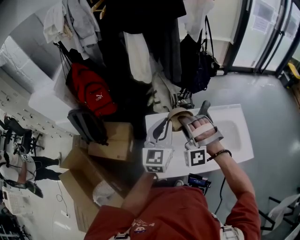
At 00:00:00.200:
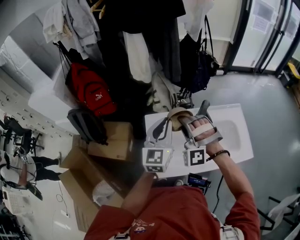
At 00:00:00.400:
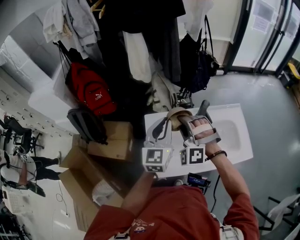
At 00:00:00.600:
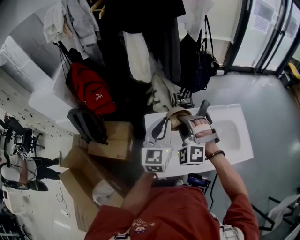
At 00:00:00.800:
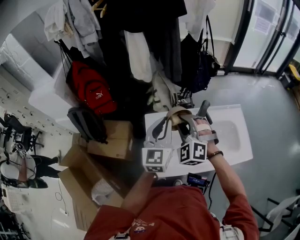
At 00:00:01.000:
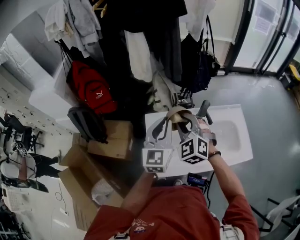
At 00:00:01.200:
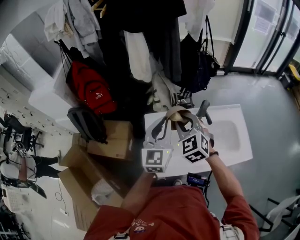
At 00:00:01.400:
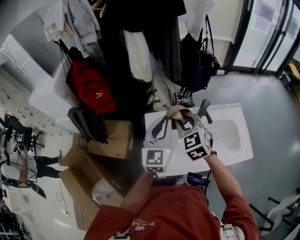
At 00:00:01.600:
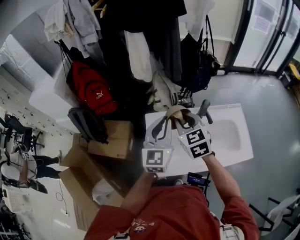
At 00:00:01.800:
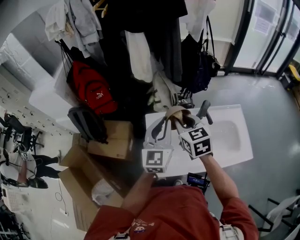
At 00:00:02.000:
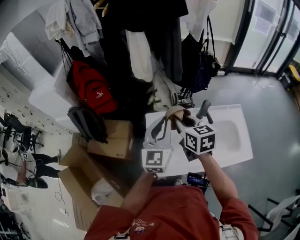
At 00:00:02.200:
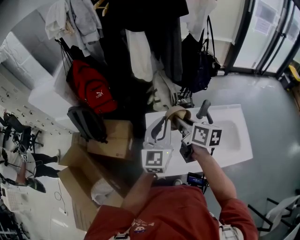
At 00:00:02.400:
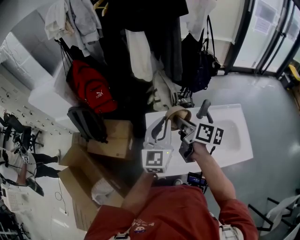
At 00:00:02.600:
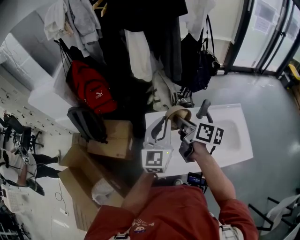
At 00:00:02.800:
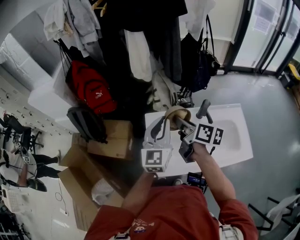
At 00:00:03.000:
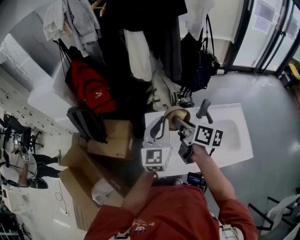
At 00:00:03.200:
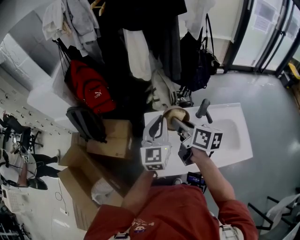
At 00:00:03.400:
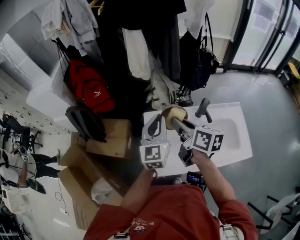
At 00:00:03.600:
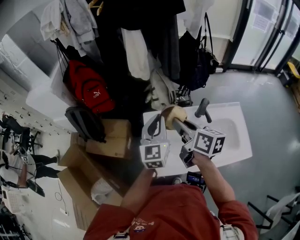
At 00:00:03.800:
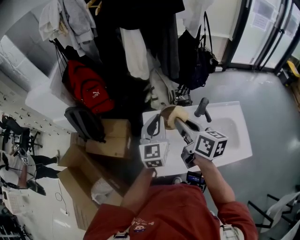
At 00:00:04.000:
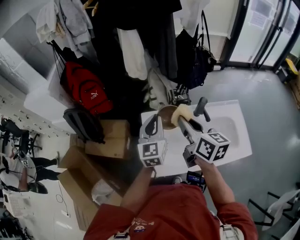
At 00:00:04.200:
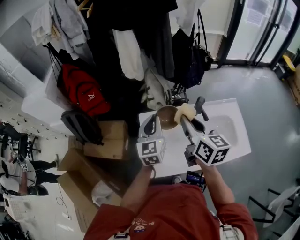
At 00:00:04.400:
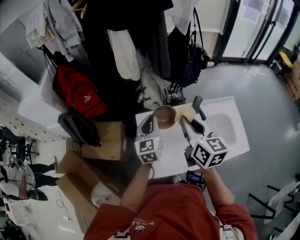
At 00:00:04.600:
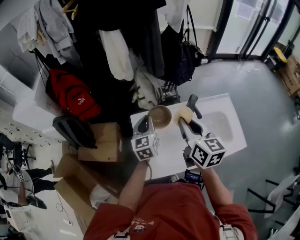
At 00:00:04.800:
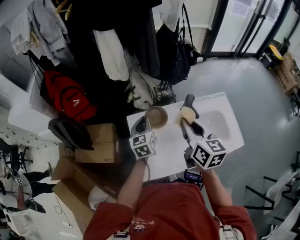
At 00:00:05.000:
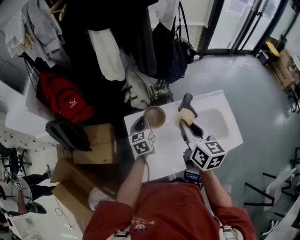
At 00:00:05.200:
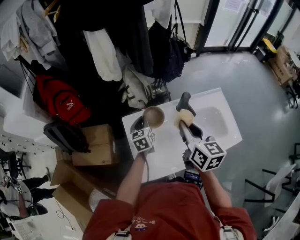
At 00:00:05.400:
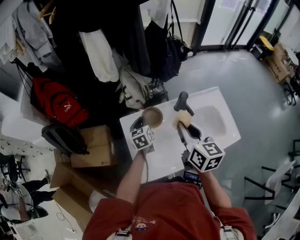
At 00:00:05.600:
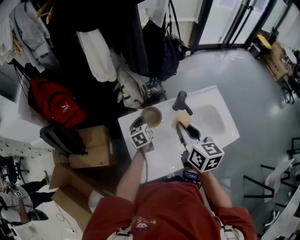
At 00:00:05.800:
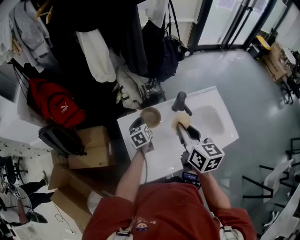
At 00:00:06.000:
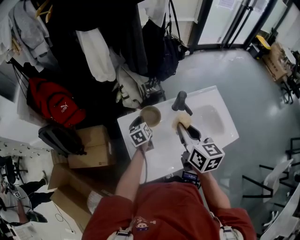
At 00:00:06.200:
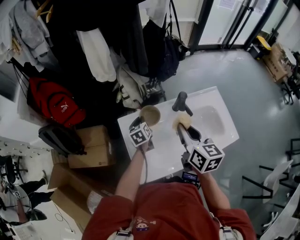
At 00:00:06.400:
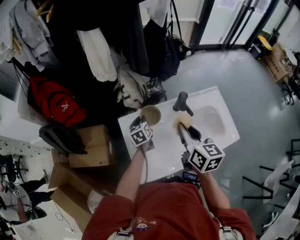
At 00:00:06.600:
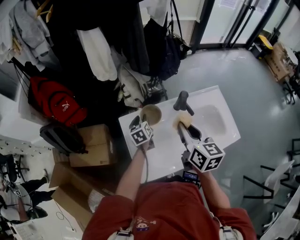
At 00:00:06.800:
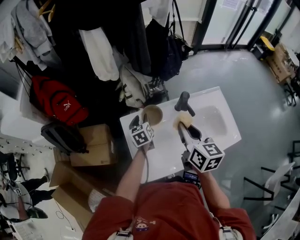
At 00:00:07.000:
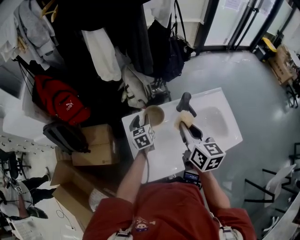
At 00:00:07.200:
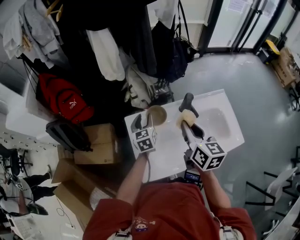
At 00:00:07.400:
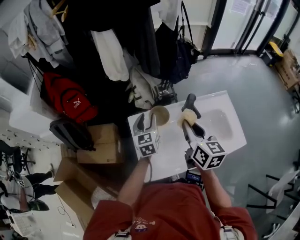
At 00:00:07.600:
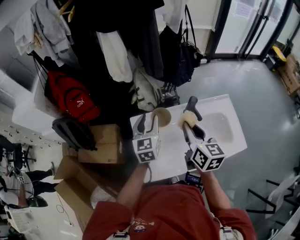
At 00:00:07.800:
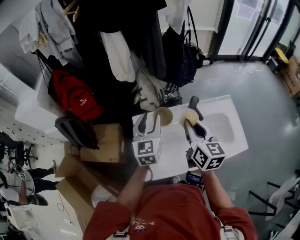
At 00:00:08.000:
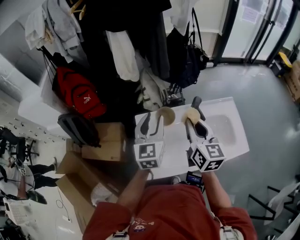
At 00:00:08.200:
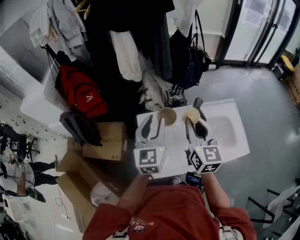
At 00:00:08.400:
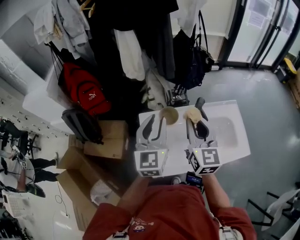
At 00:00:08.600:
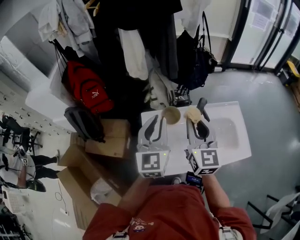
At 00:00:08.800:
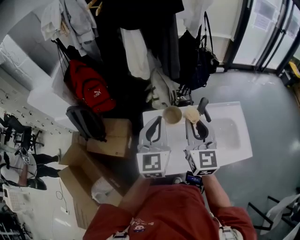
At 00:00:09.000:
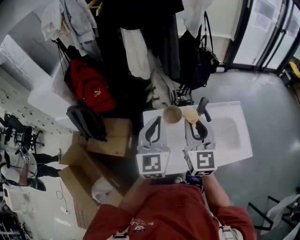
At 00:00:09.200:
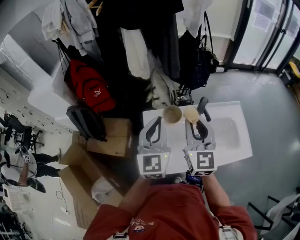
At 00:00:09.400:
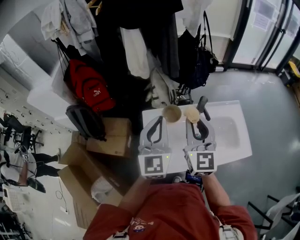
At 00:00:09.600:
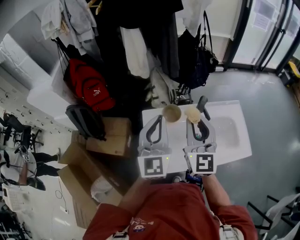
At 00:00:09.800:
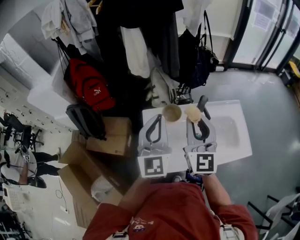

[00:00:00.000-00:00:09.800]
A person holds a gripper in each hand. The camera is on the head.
00:00:00.000 to 00:00:01.400: The right gripper rolls clockwise, seen from behind, by some 70 degrees.
00:00:01.400 to 00:00:02.800: The right gripper rolls clockwise, seen from behind, by some 70 degrees.
00:00:02.800 to 00:00:04.200: The left gripper is displaced downward by approximately 5 cm, while the right gripper shifts by about 5 cm, and changes its angle by some 30 degrees.
00:00:04.200 to 00:00:05.600: The right gripper travels downward by roughly 5 cm. Meanwhile the left gripper shifts approximately 20 cm downward and forward, and swivels roughly 30 degrees.
00:00:05.600 to 00:00:07.000: The left gripper opens.
00:00:07.000 to 00:00:08.400: The left gripper travels upward and backward by approximately 30 cm, and swivels some 30 degrees, while the right gripper shifts about 5 cm upward, and swivels approximately 20 degrees.
00:00:08.400 to 00:00:09.800: The left gripper shifts by some 5 cm, and closes.

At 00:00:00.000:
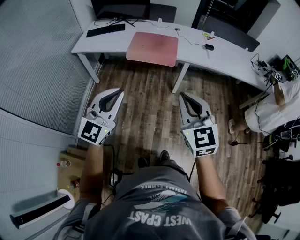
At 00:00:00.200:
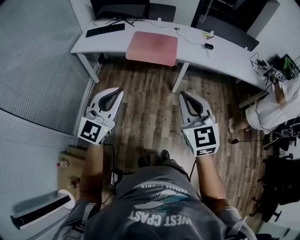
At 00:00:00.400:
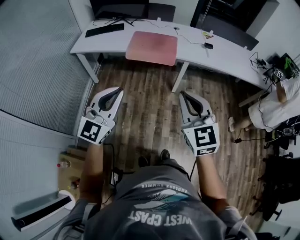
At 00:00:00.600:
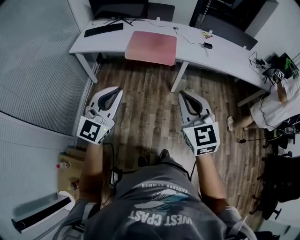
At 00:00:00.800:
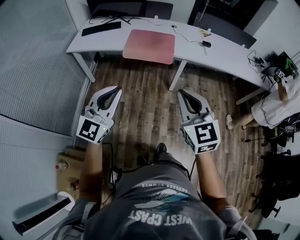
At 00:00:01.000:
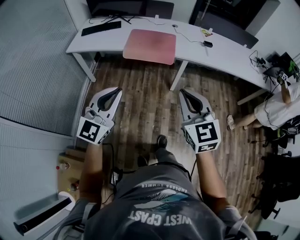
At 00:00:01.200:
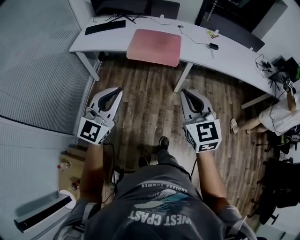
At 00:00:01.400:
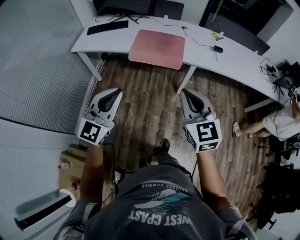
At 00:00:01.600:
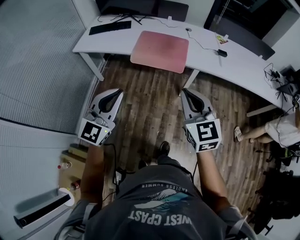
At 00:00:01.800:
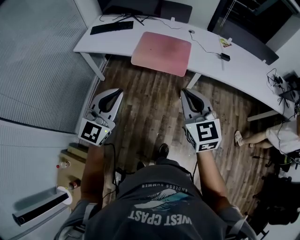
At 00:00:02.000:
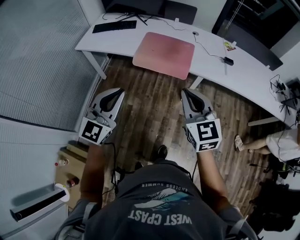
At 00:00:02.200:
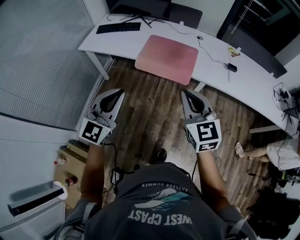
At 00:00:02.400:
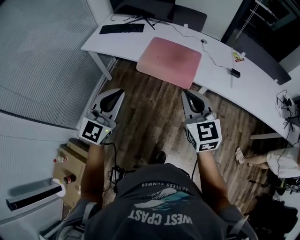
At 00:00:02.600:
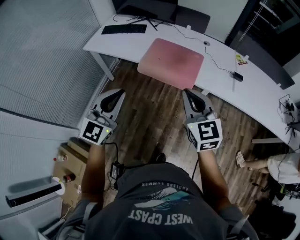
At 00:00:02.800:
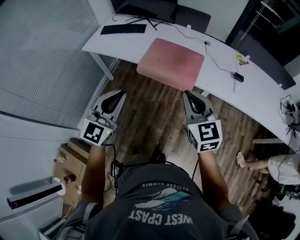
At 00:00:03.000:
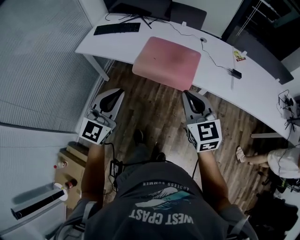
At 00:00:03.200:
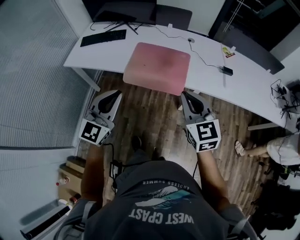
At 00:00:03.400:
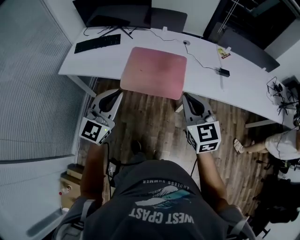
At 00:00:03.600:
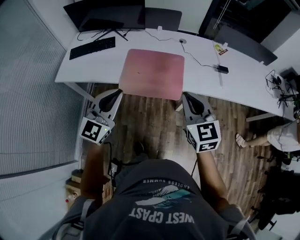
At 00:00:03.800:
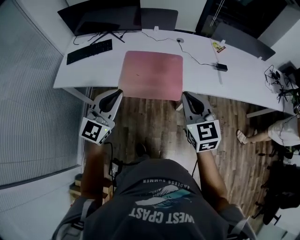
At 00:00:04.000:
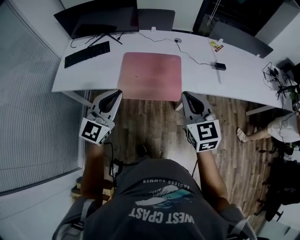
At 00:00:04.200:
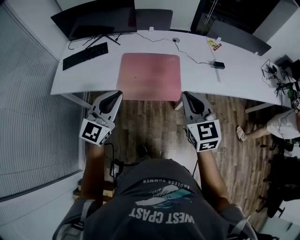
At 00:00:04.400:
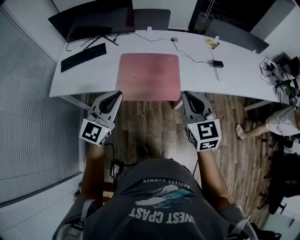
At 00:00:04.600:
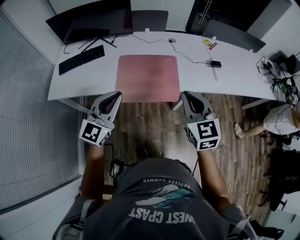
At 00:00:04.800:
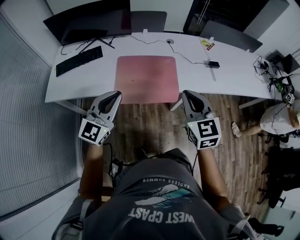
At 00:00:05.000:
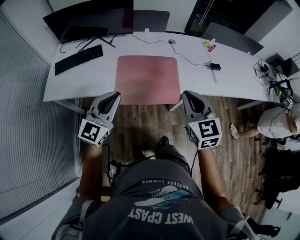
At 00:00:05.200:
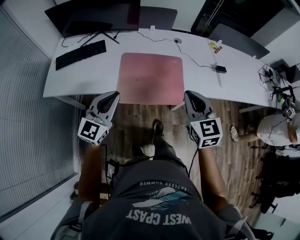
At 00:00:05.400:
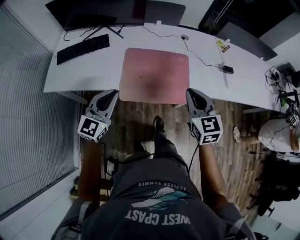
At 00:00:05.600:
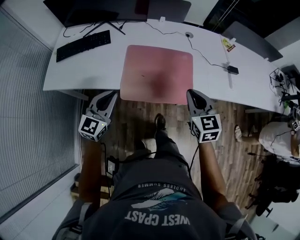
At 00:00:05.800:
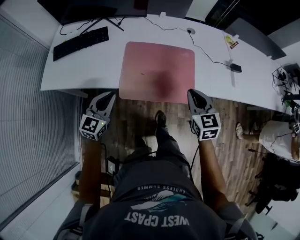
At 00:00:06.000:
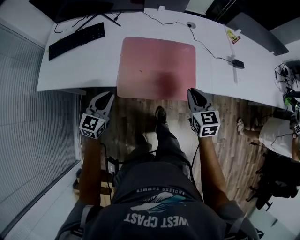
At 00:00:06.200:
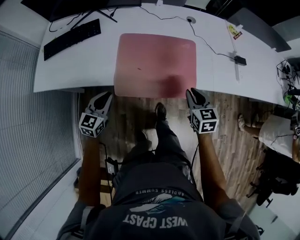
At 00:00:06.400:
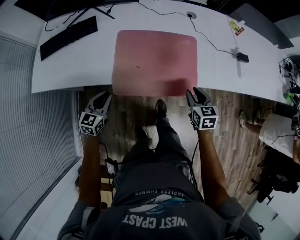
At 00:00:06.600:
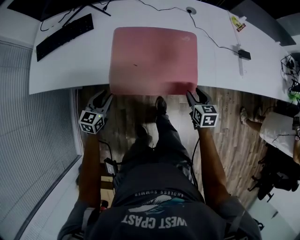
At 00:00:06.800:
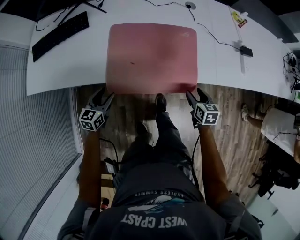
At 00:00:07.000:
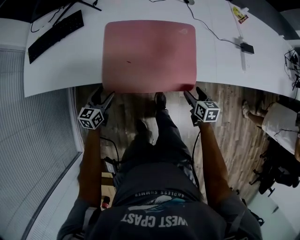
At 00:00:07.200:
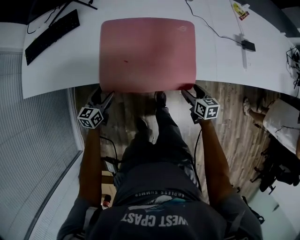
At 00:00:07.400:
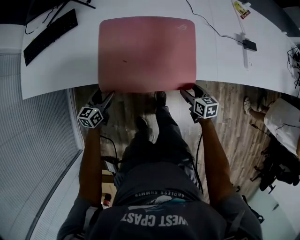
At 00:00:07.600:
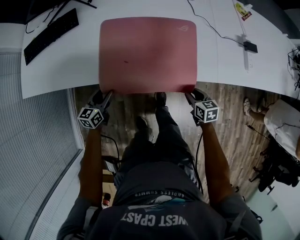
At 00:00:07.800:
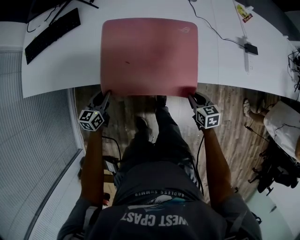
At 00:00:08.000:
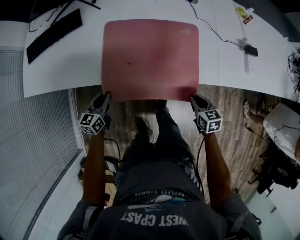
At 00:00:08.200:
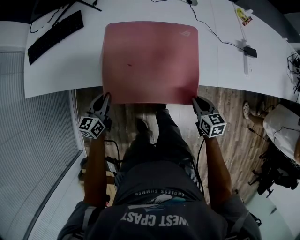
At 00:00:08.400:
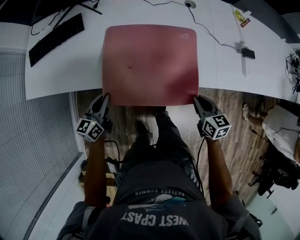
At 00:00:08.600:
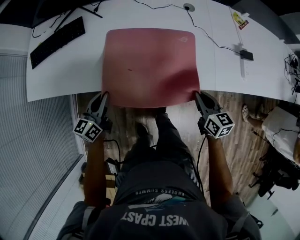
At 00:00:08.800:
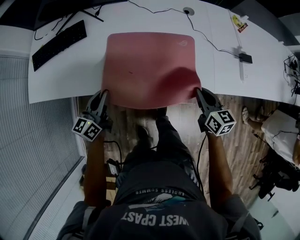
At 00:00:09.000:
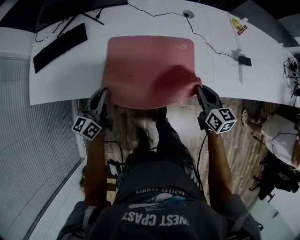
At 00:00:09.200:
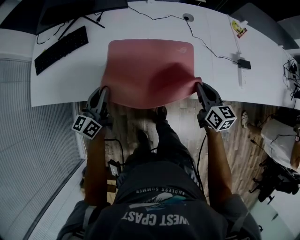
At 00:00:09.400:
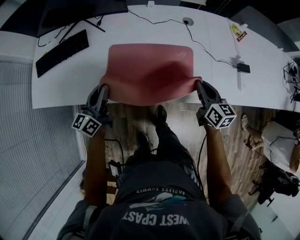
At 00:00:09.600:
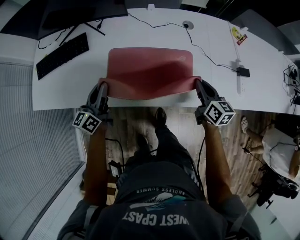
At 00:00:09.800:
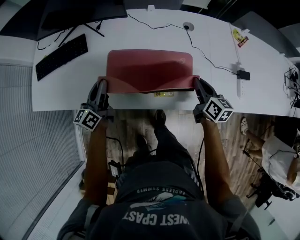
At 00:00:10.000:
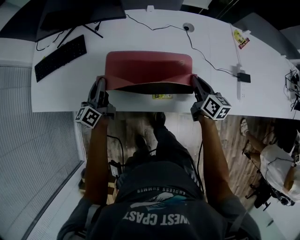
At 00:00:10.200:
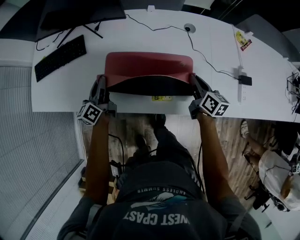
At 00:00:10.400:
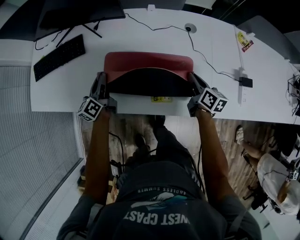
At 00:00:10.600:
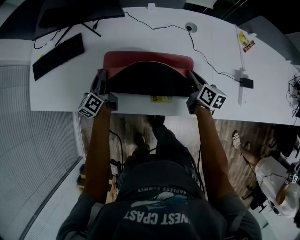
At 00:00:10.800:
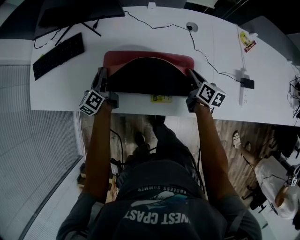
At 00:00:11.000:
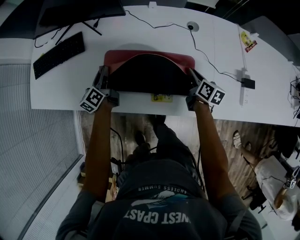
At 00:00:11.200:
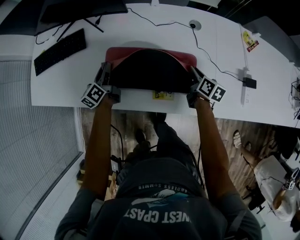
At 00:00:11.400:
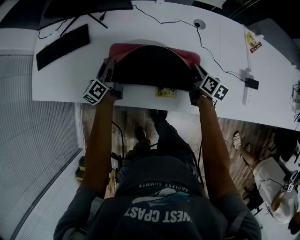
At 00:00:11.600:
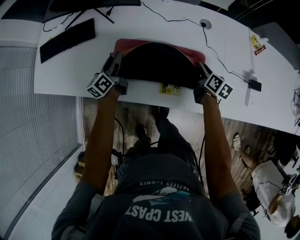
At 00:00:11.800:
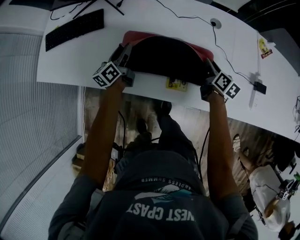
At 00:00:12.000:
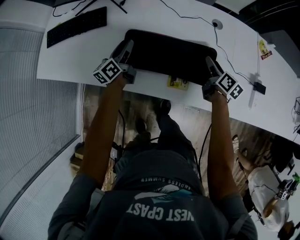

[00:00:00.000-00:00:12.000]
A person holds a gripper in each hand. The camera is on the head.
00:00:00.000 to 00:00:01.600: The two grippers go approximately 15 cm forward.
00:00:01.600 to 00:00:03.000: The grippers both shift forward by about 15 cm.
00:00:03.000 to 00:00:04.400: The left gripper moves forward, approximately 15 cm, and swivels approximately 20 degrees; the right gripper travels forward by some 10 cm, and turns by some 20 degrees.
00:00:04.400 to 00:00:06.000: The right gripper shifts roughly 25 cm downward and forward, while the left gripper is displaced downward and to the left by approximately 25 cm, and swivels some 30 degrees.
00:00:06.000 to 00:00:07.600: Both grippers move downward, approximately 20 cm. The right gripper turns by roughly 30 degrees, and opens, then closes again. The left gripper swivels roughly 30 degrees, and opens.
00:00:07.600 to 00:00:09.000: The right gripper moves upward and forward, approximately 20 cm, and swivels about 20 degrees. The left gripper goes about 20 cm upward, rotates approximately 20 degrees, and closes up.
00:00:09.000 to 00:00:10.400: The grippers both shift forward by approximately 15 cm. The left gripper swivels some 20 degrees, while the right gripper changes its angle by approximately 20 degrees.
00:00:10.400 to 00:00:12.000: The right gripper opens its fingers. Meanwhile the left gripper opens.

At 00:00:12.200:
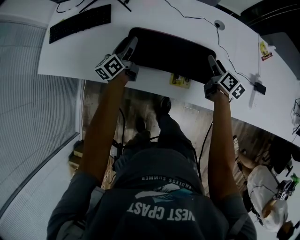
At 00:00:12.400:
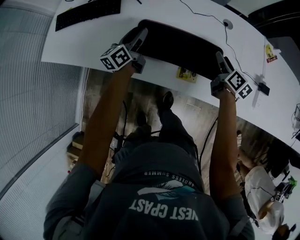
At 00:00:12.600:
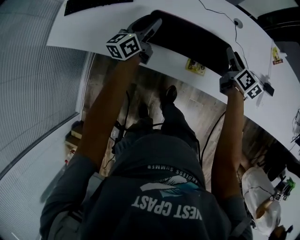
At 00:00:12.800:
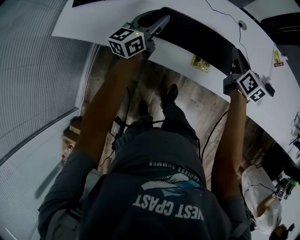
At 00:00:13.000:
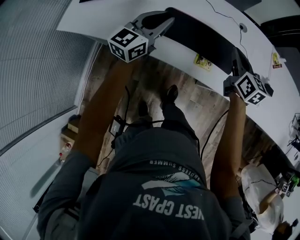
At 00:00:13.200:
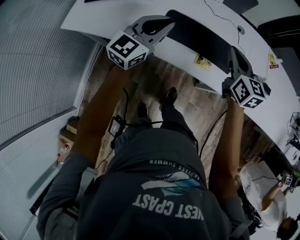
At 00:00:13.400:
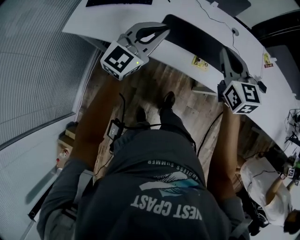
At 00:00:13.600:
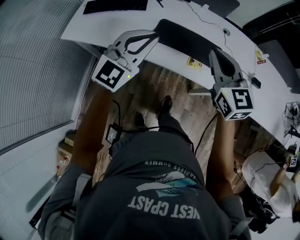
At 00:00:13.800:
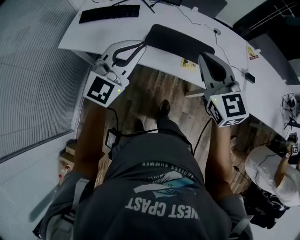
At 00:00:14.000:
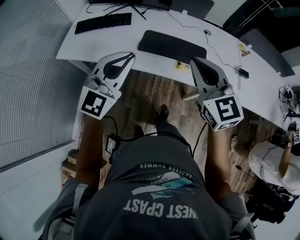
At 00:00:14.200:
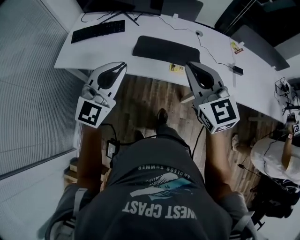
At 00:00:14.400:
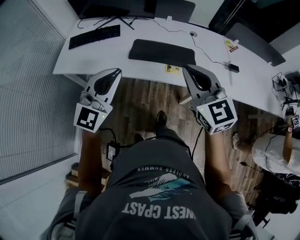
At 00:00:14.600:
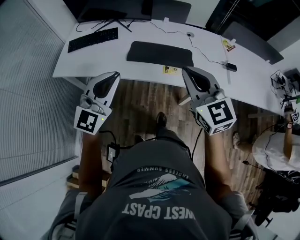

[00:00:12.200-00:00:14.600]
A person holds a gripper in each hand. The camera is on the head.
00:00:12.200 to 00:00:13.400: The left gripper heads upward and backward, covering about 30 cm, twists some 60 degrees clockwise, seen from behind, and closes its fingers. The right gripper is displaced upward, to the left and backward by about 35 cm, rolls counterclockwise, seen from behind, by about 50 degrees, and closes up.
00:00:13.400 to 00:00:14.600: The left gripper goes roughly 15 cm backward; the right gripper travels backward and upward by approximately 20 cm.
